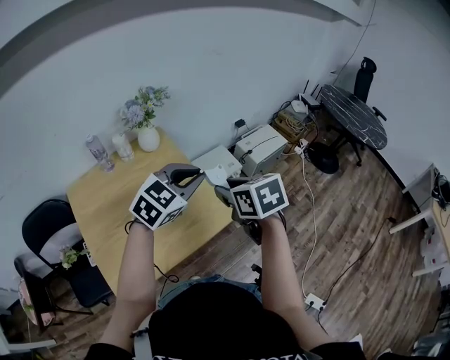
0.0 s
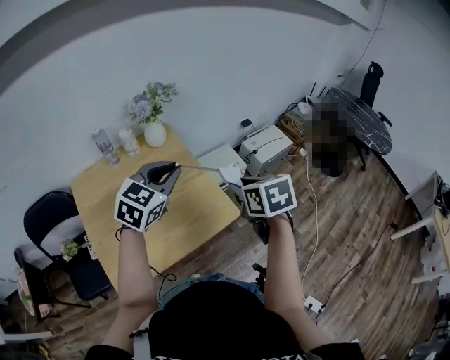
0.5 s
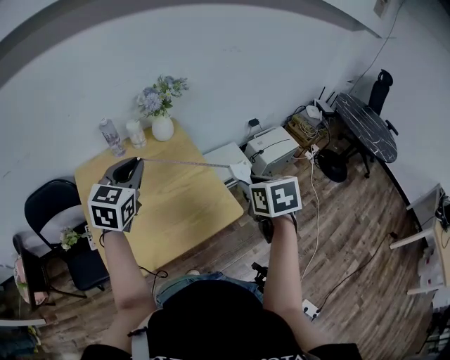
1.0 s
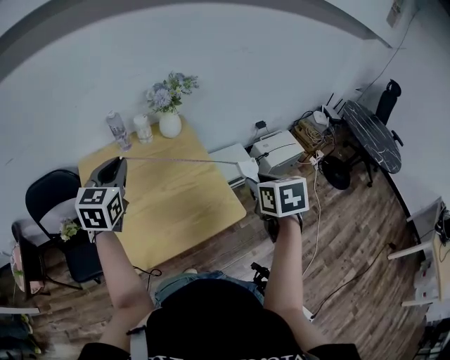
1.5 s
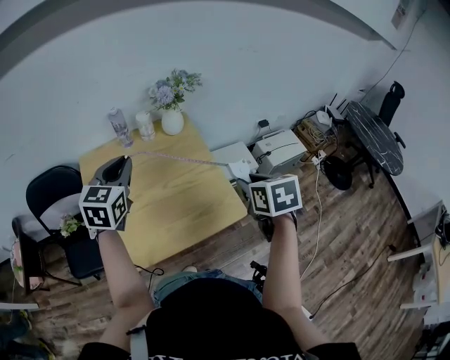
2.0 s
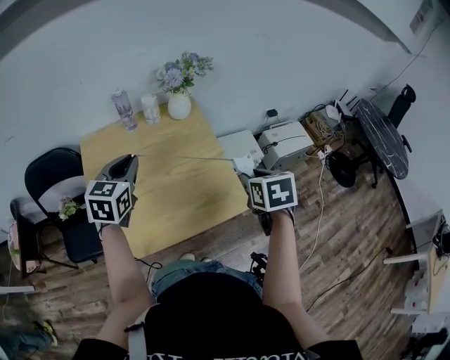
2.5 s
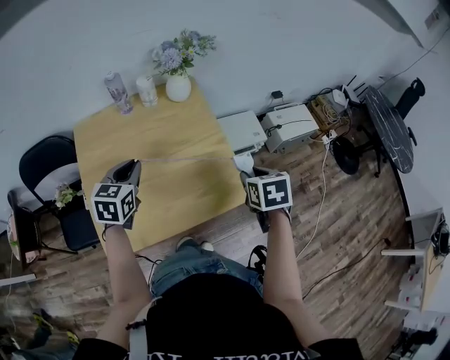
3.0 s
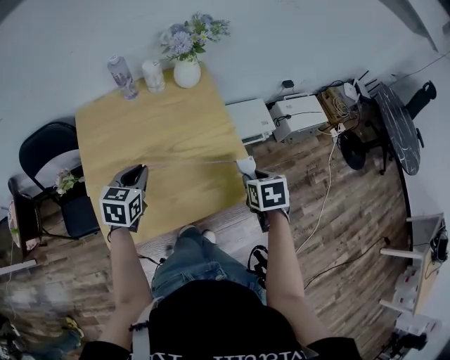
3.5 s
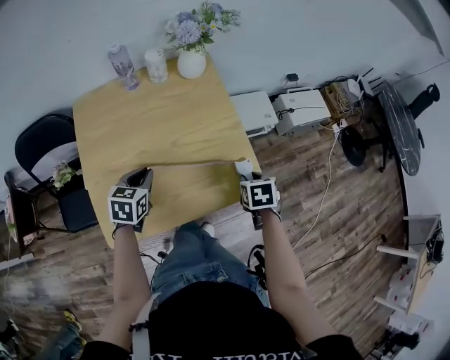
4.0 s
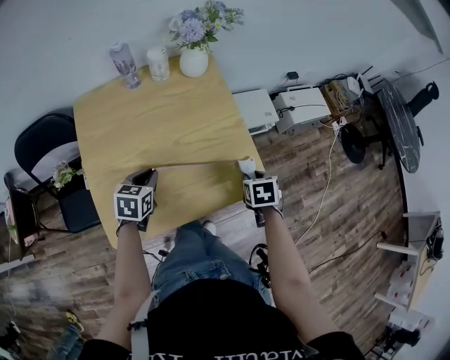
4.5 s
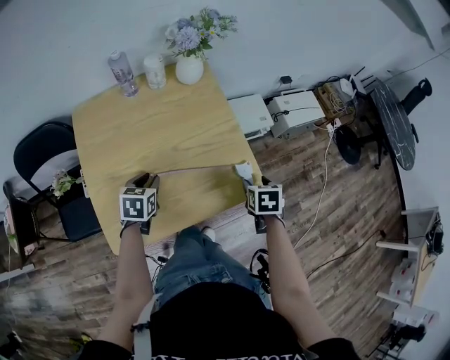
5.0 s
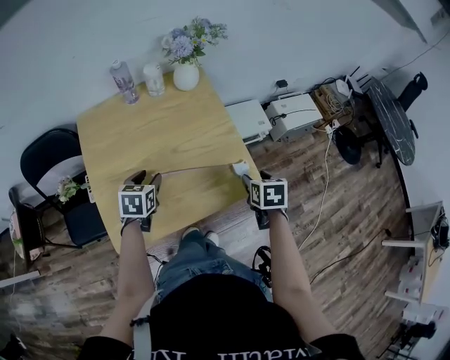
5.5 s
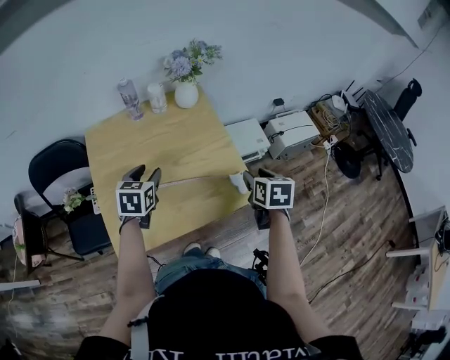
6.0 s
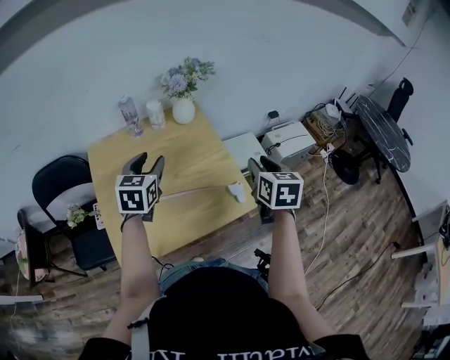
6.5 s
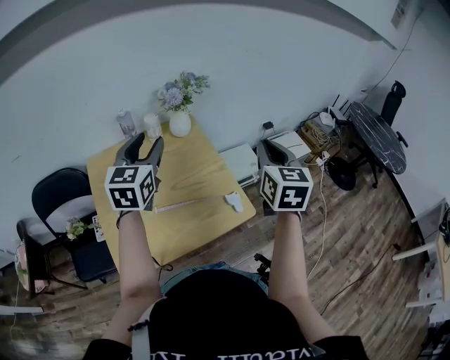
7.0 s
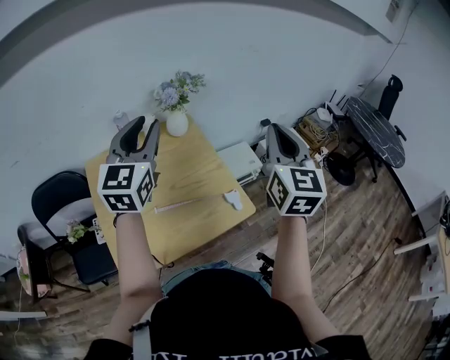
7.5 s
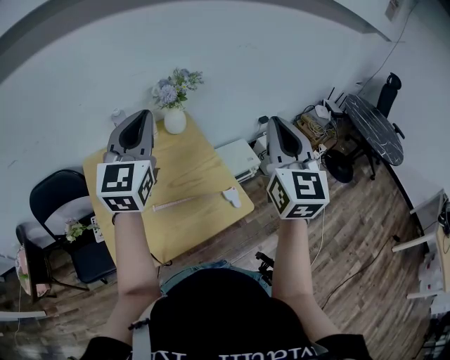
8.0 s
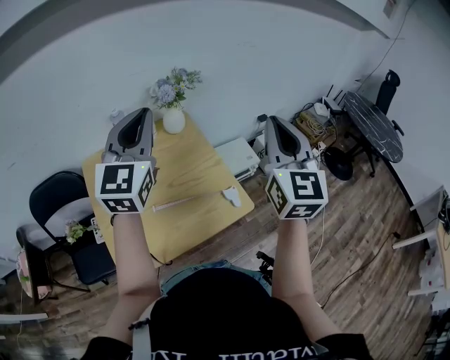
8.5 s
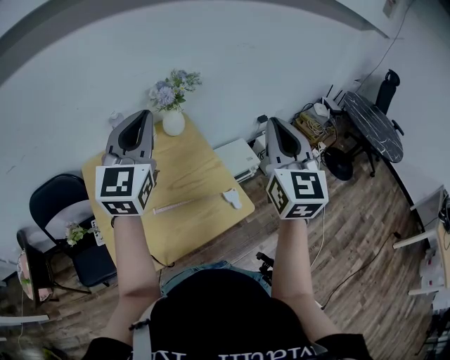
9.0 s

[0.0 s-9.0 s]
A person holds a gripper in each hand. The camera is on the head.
0.0 to 2.0 s: The left gripper shifts roughly 25 cm to the left, and rotates some 50 degrees.
2.0 to 4.5 s: Both grippers move downward, roughly 25 cm. The left gripper turns by roughly 30 degrees; the right gripper changes its angle by roughly 20 degrees.
4.5 to 7.0 s: The grippers both shift upward by some 35 cm. The left gripper points its fingers approximately 40 degrees further upward, and opens. Meanwhile the right gripper points its fingers about 50 degrees further upward.
7.0 to 9.0 s: Both grippers travel together upward, some 10 cm. The left gripper rotates some 20 degrees, and closes up. The right gripper rotates roughly 20 degrees.

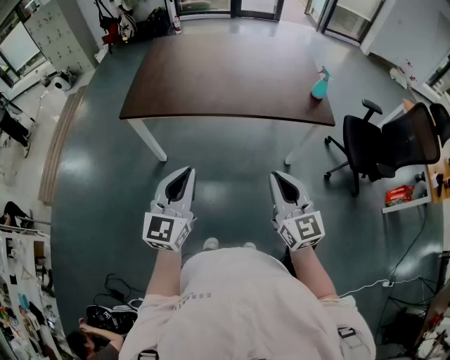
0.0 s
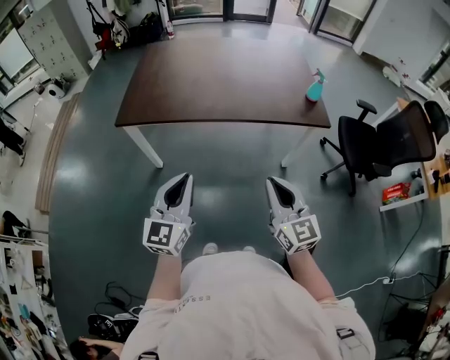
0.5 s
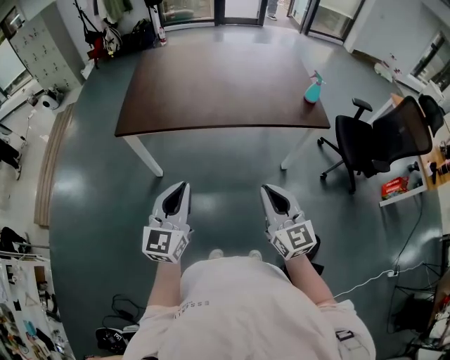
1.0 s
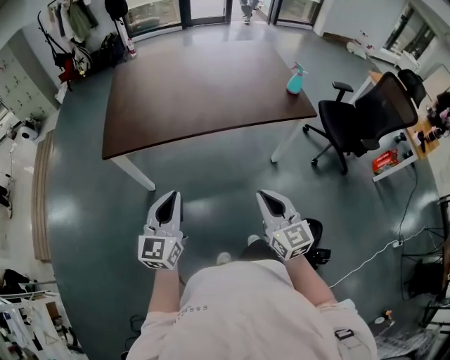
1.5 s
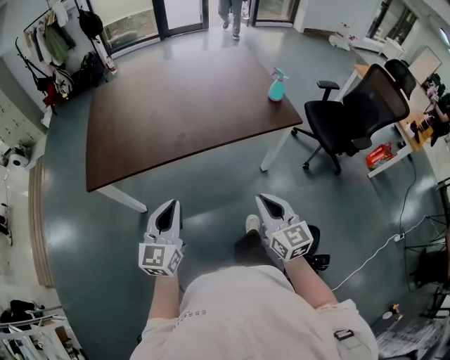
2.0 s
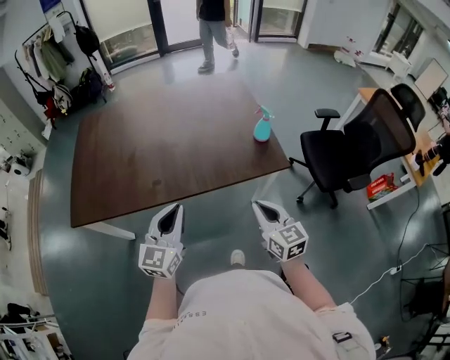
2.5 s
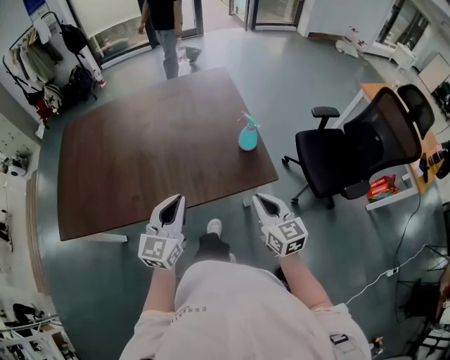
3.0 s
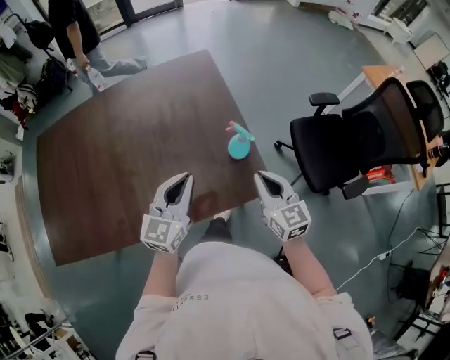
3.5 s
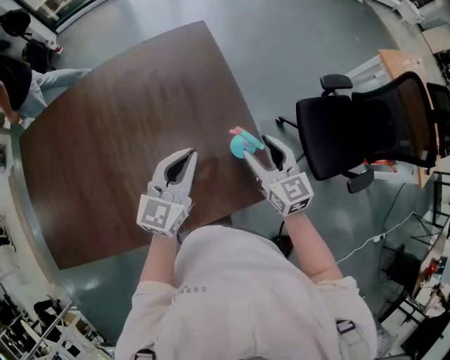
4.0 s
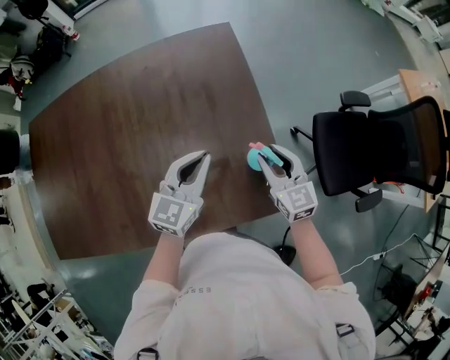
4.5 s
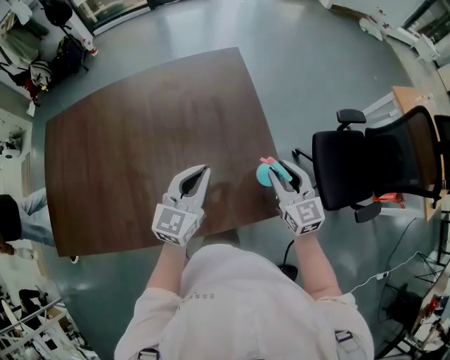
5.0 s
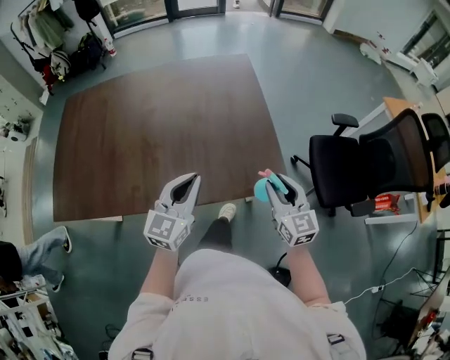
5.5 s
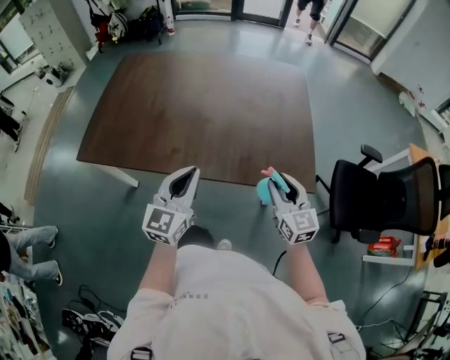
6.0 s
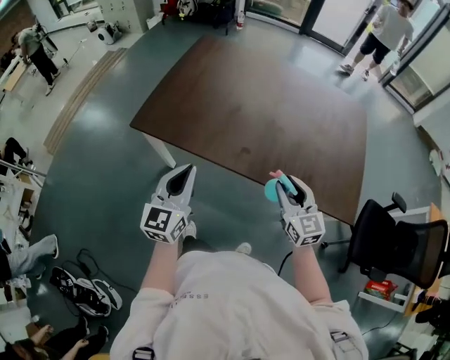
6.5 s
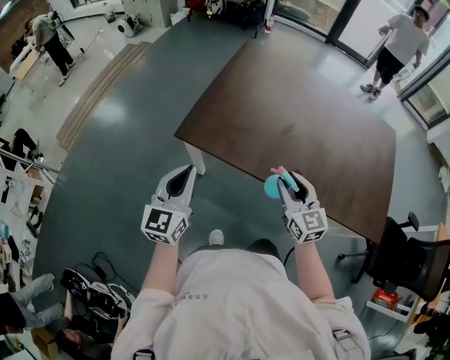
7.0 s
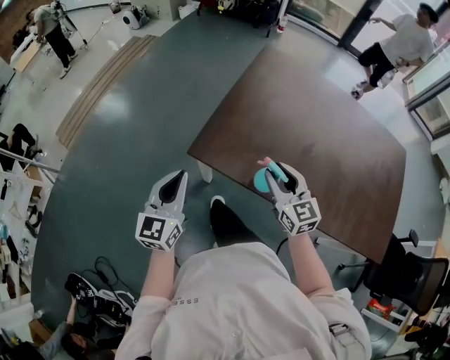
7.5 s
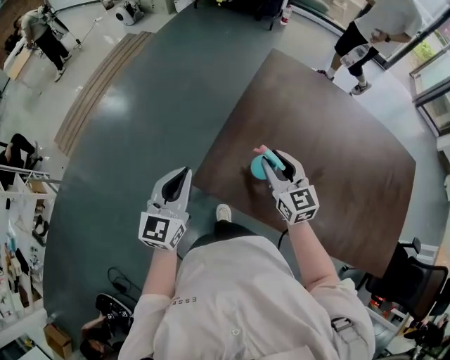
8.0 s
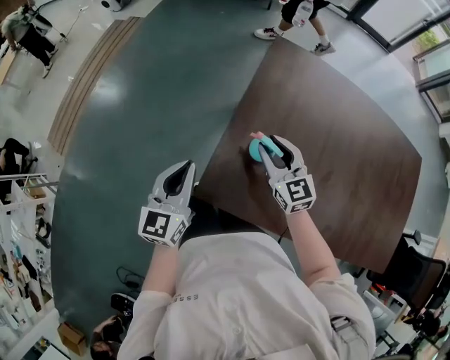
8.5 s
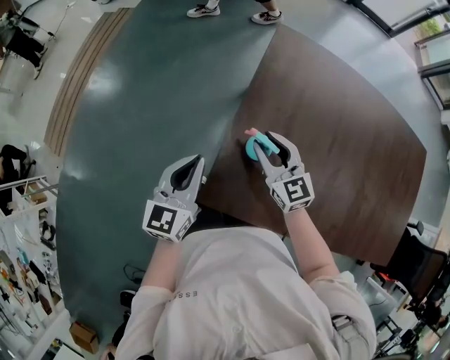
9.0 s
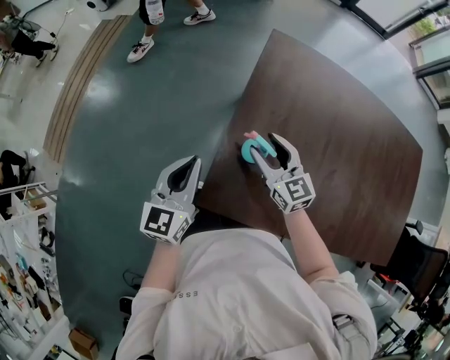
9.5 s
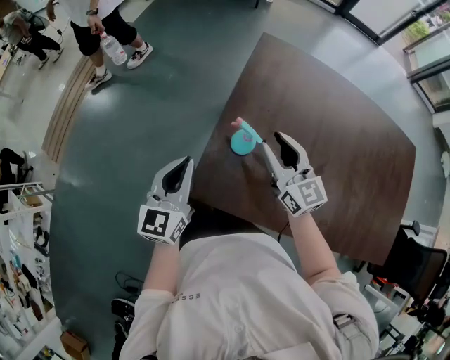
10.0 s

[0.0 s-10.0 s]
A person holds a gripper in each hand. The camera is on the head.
0.0 to 2.0 s: The right gripper goes approximately 10 cm downward and forward, and goes to the left and returns, about 10 cm each way. Meanwhile the left gripper heads forward and downward, covering approximately 15 cm.
2.0 to 4.0 s: The two grippers travel together, forward and to the right, some 60 cm. The right gripper opens.
4.0 to 6.0 s: The two grippers go about 30 cm backward and to the left. The right gripper swivels about 20 degrees, and closes, while the left gripper turns by some 30 degrees.
6.0 to 8.0 s: Both grippers are carried some 70 cm. The right gripper turns by about 30 degrees; the left gripper rotates some 30 degrees.
8.0 to 10.0 s: Both grippers travel together forward, some 5 cm.

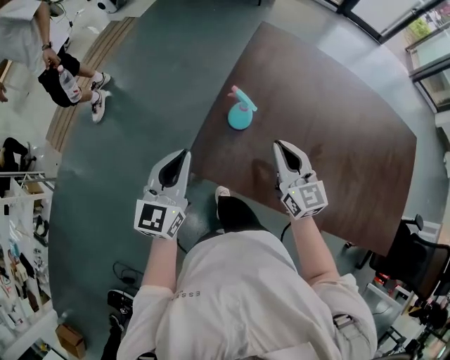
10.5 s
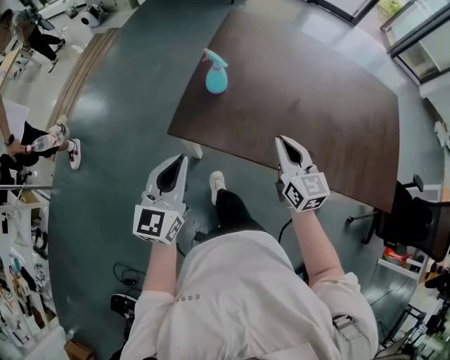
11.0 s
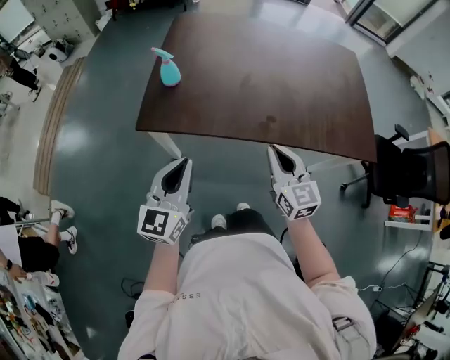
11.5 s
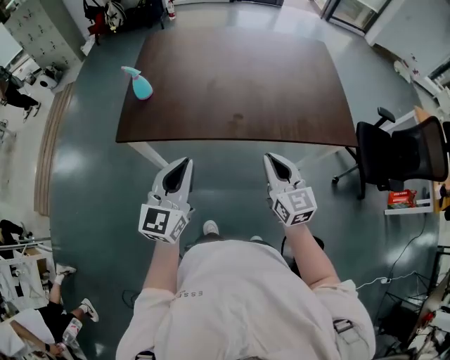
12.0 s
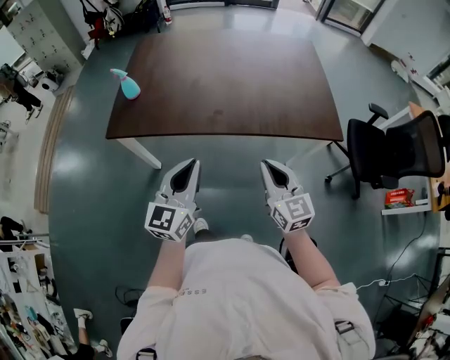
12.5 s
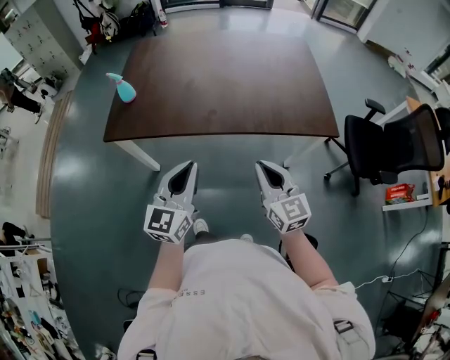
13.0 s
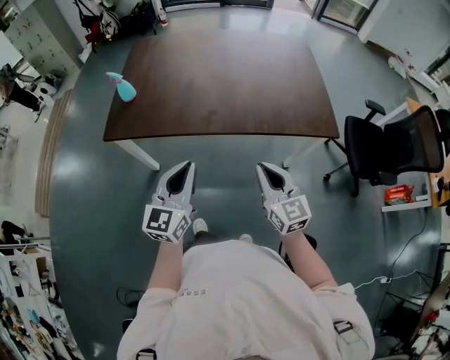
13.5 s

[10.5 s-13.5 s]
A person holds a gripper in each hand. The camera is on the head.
10.5 to 12.0 s: The left gripper moves to the right and backward, about 40 cm, and turns by about 20 degrees. Meanwhile the right gripper goes approximately 50 cm backward and to the right, and rotates approximately 30 degrees.
12.0 to 13.5 s: The right gripper moves to the right and backward, about 10 cm; the left gripper moves to the right, about 10 cm.

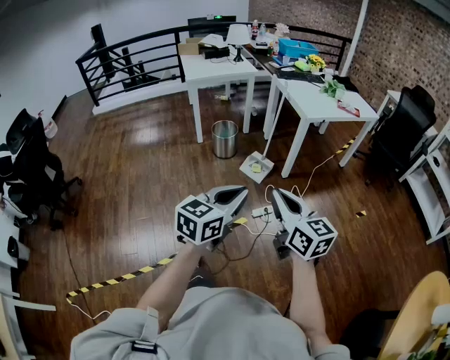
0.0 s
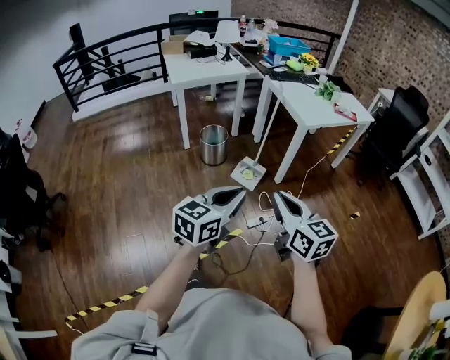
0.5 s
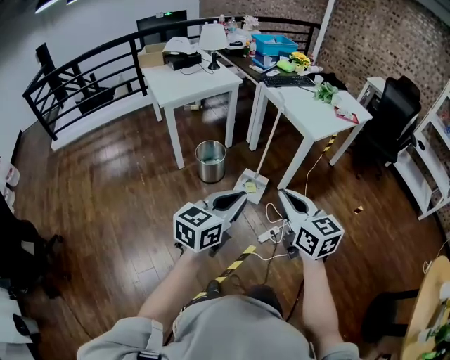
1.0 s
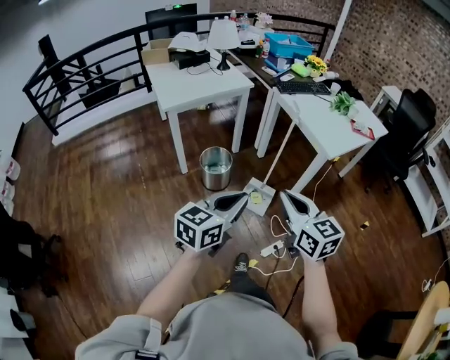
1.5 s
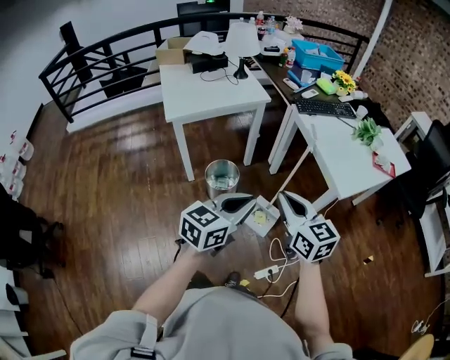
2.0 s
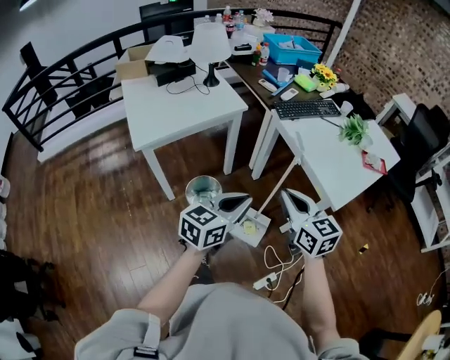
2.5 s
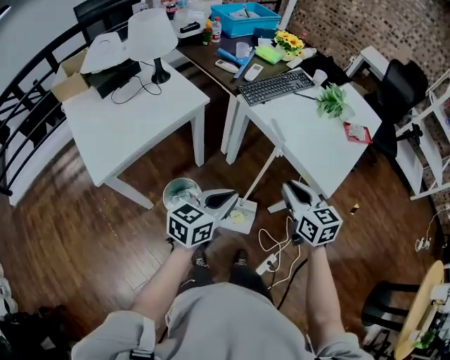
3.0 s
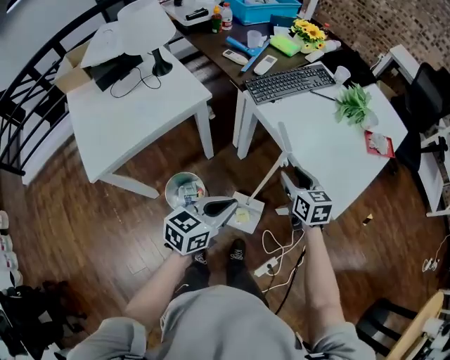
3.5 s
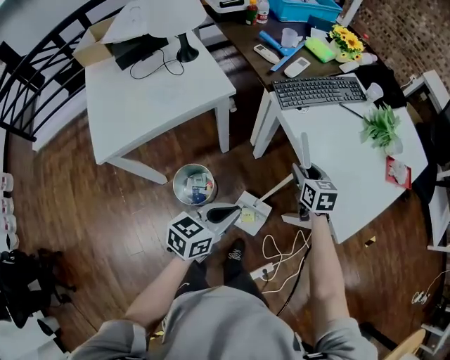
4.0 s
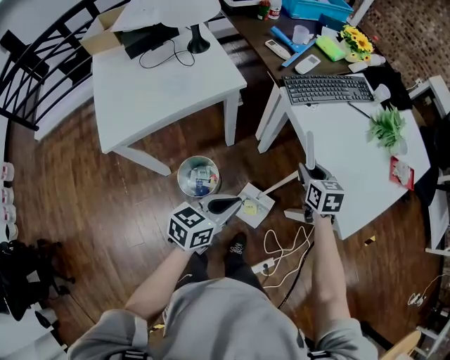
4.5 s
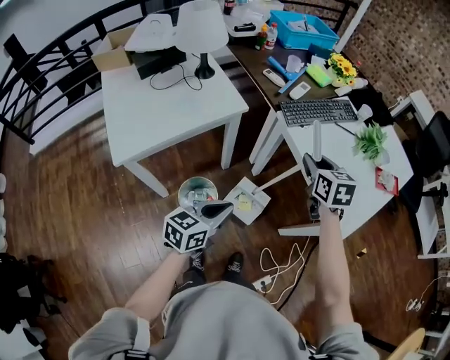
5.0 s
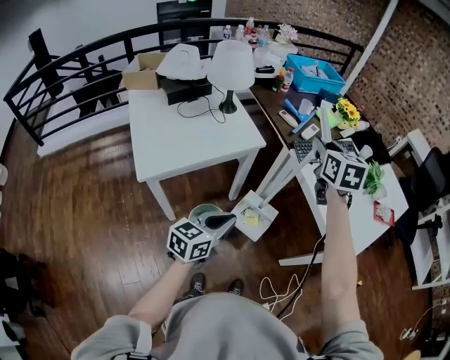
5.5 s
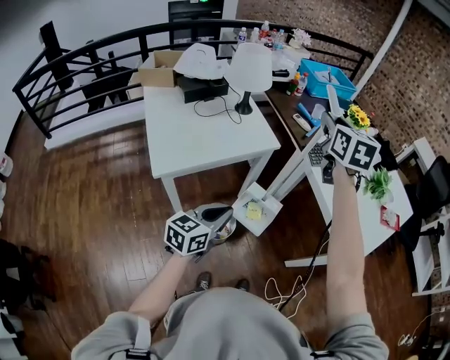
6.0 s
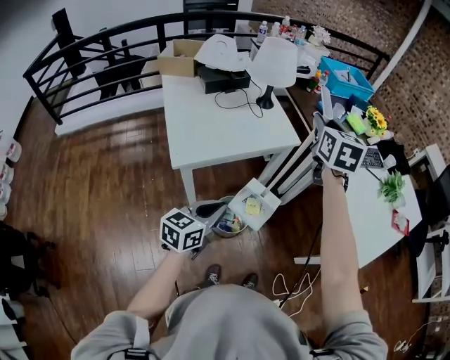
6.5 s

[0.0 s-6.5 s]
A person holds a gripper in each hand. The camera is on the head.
0.0 to 2.0 s: The pair of grippers is taken forward, roughly 60 cm.
2.0 to 4.5 s: Both grippers move forward and downward, roughly 40 cm. The left gripper rotates roughly 20 degrees. Meanwhile the right gripper changes its angle by some 30 degrees, and opens up.
4.5 to 6.5 s: The right gripper shifts some 50 cm upward and to the left, and changes its angle by approximately 30 degrees; the left gripper travels to the left by roughly 25 cm.
